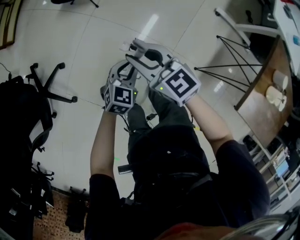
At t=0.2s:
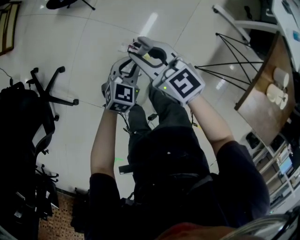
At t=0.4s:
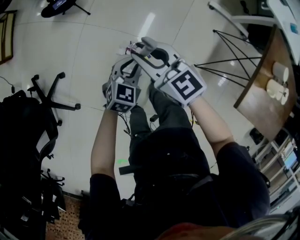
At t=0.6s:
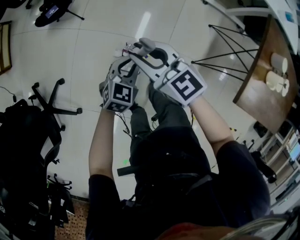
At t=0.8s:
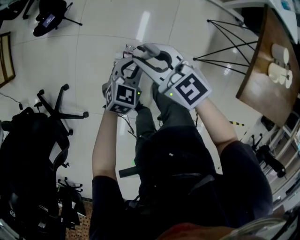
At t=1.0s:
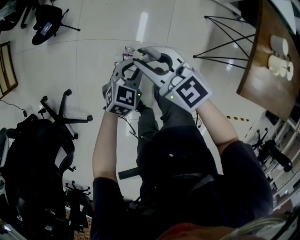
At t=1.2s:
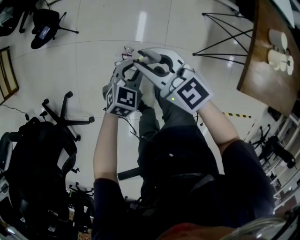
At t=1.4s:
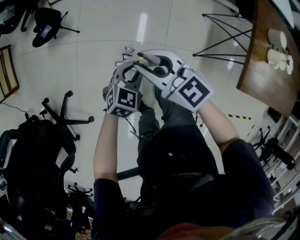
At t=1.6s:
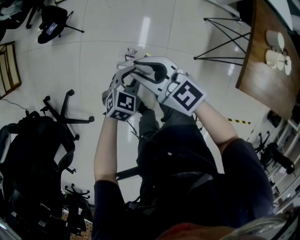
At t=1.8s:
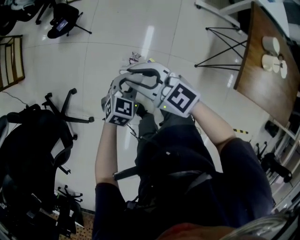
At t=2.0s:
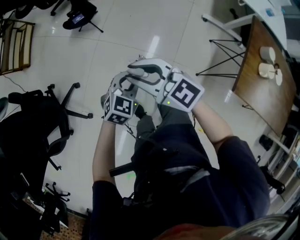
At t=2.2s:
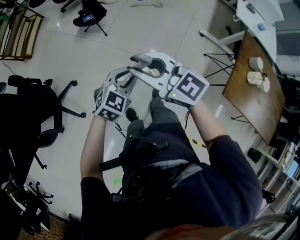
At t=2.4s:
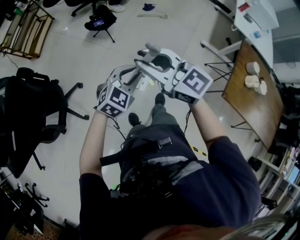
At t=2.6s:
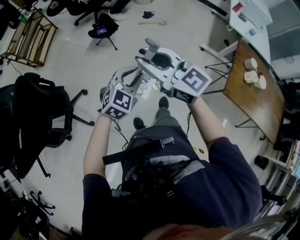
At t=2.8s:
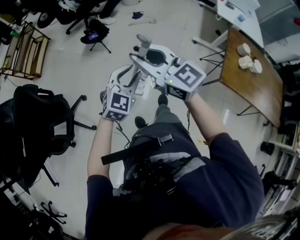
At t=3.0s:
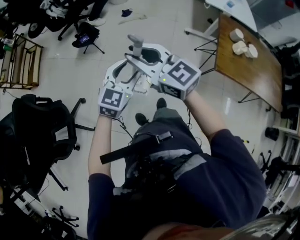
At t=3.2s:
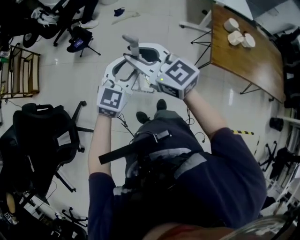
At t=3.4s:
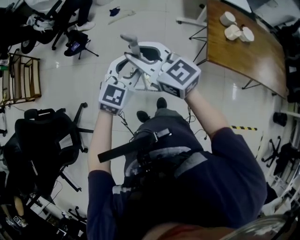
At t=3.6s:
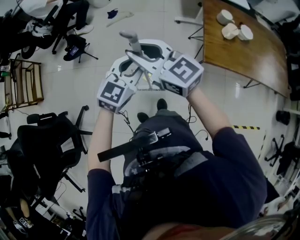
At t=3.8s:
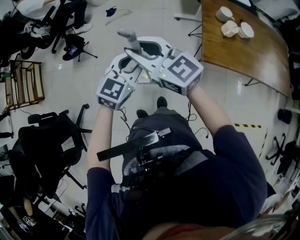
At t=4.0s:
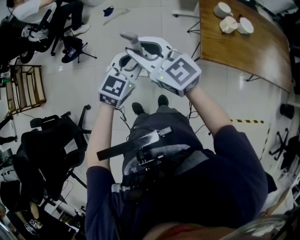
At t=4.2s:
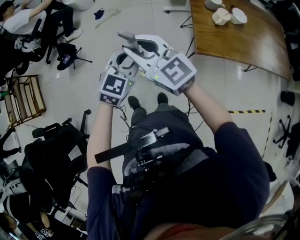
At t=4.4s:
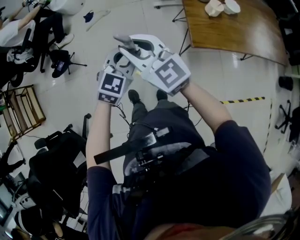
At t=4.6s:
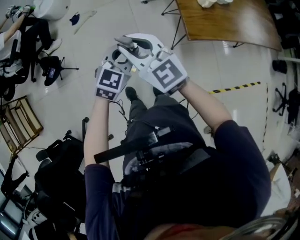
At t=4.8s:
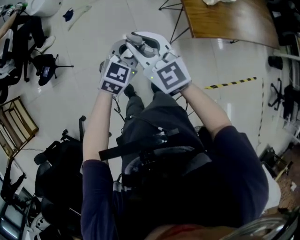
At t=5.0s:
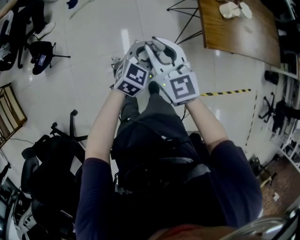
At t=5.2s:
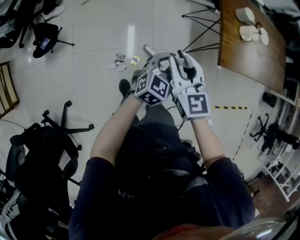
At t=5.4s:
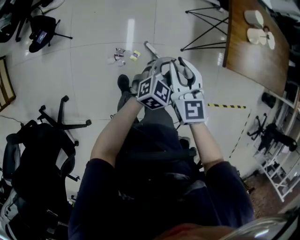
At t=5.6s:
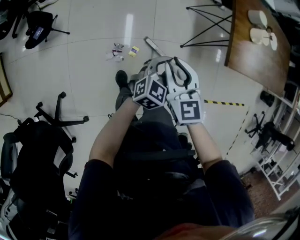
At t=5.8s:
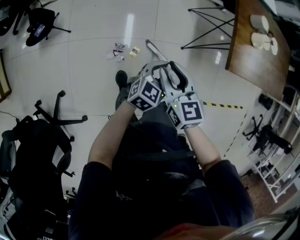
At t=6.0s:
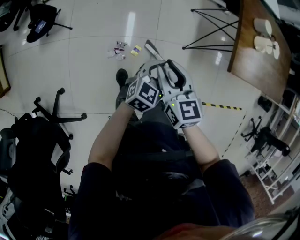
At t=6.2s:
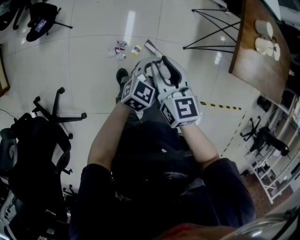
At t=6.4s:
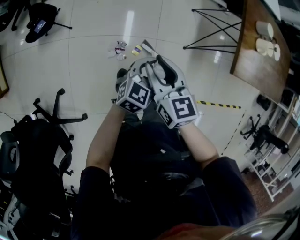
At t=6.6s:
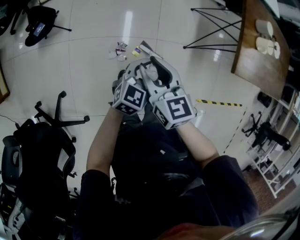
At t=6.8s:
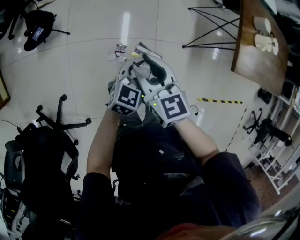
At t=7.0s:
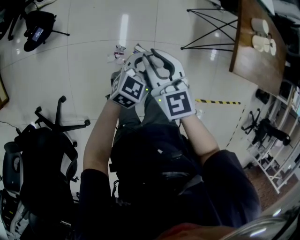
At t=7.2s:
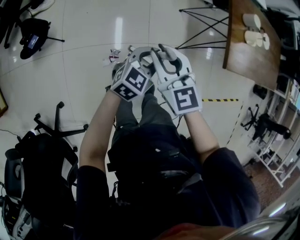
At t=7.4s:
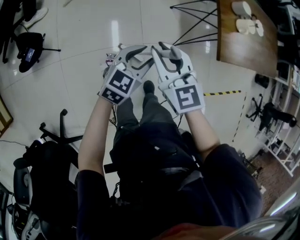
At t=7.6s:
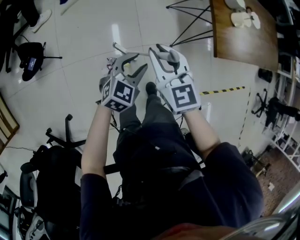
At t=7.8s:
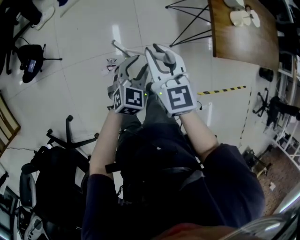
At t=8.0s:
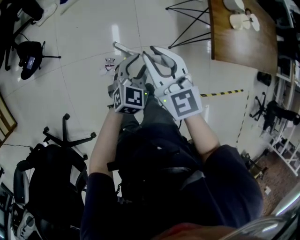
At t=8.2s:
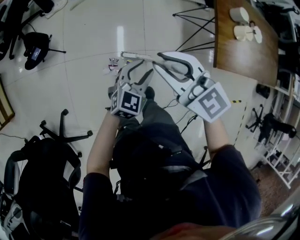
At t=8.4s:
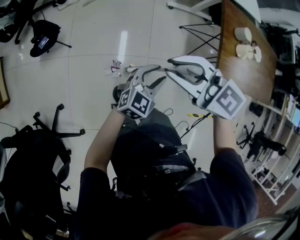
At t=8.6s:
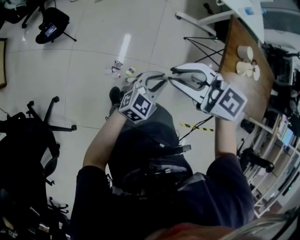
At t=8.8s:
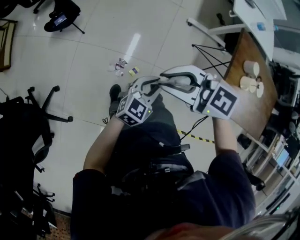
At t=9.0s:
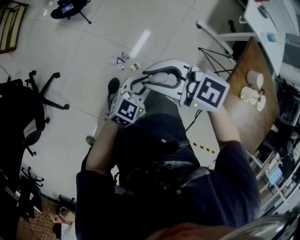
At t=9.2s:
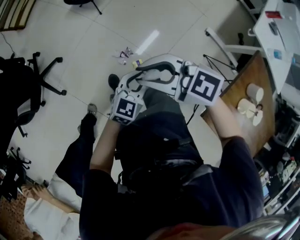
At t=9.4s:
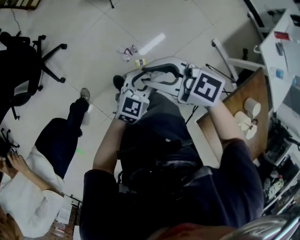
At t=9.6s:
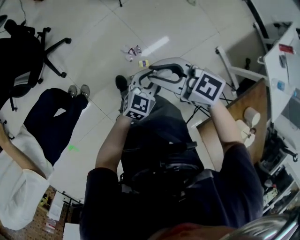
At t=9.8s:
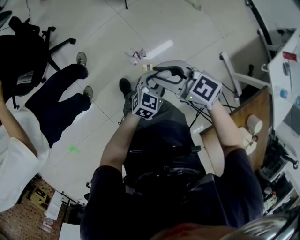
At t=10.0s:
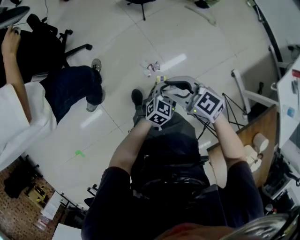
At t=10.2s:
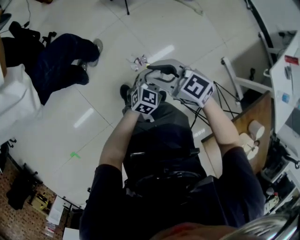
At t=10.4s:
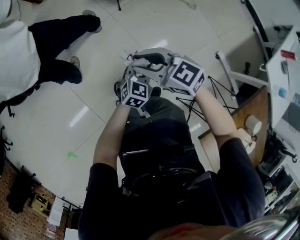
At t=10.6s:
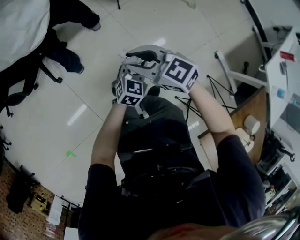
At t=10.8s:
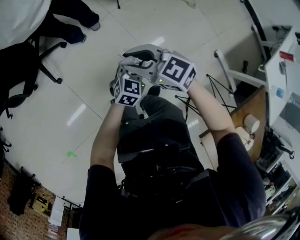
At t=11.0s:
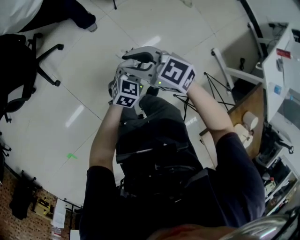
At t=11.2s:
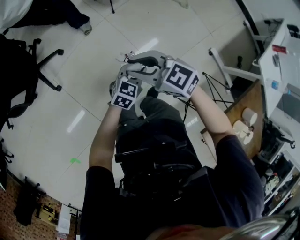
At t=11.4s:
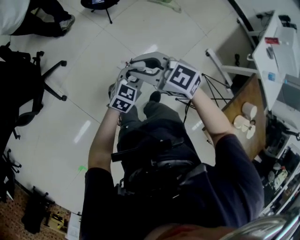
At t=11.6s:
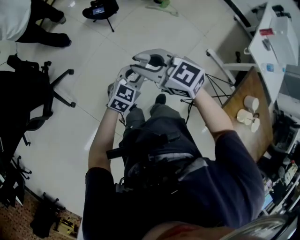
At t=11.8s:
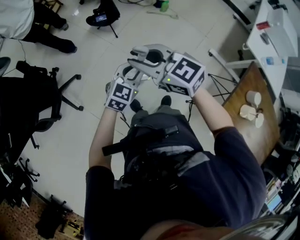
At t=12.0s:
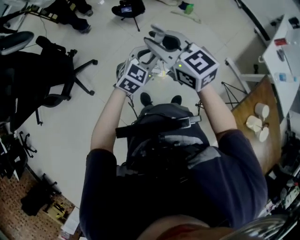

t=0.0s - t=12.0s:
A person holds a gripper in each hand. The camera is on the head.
t=0.0s - t=1.6s: The two grippers go approximately 10 cm to the right. The left gripper turns by some 20 degrees.
t=1.6s - t=3.0s: The left gripper is displaced upward by some 30 cm, changes its angle by approximately 30 degrees, and opens its fingers, while the right gripper goes about 30 cm upward and backward.
t=3.0s - t=4.4s: Both grippers travel together to the right and forward, approximately 25 cm. The left gripper rotates about 30 degrees, and closes up. The right gripper swivels roughly 30 degrees.
t=4.4s - t=6.0s: The grippers both shift downward by about 25 cm. The left gripper swivels about 20 degrees. The right gripper swivels roughly 40 degrees.
t=6.0s - t=7.6s: The left gripper is displaced to the left by approximately 5 cm, while the right gripper goes some 10 cm forward and upward, and reaches some 10 cm to the left, then returns.
t=7.6s - t=9.0s: The right gripper shifts by some 10 cm, and swivels roughly 90 degrees. Meanwhile the left gripper swivels some 40 degrees, and closes up.
t=9.0s - t=10.4s: Both grippers move downward, some 10 cm. The left gripper swivels roughly 40 degrees.
t=10.4s - t=12.0s: Both grippers move upward, about 25 cm. The right gripper swivels some 30 degrees.

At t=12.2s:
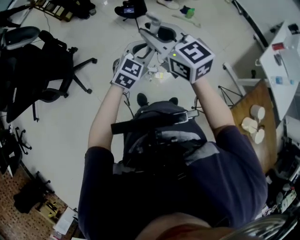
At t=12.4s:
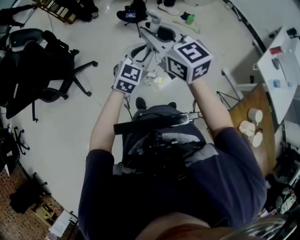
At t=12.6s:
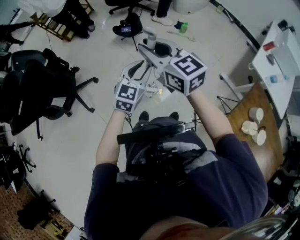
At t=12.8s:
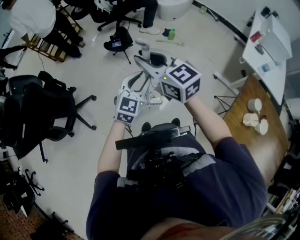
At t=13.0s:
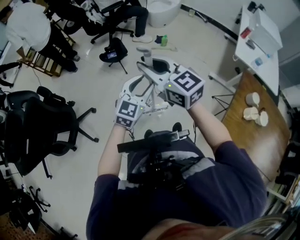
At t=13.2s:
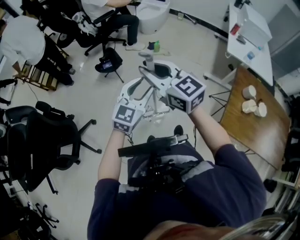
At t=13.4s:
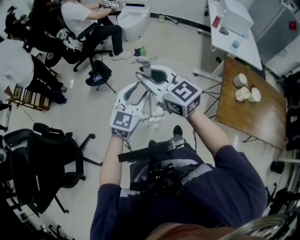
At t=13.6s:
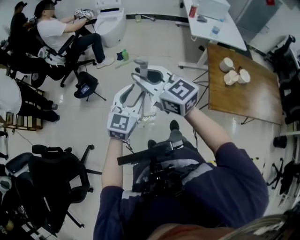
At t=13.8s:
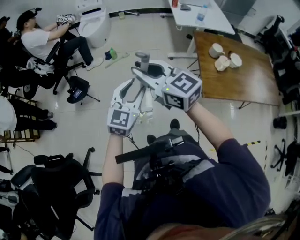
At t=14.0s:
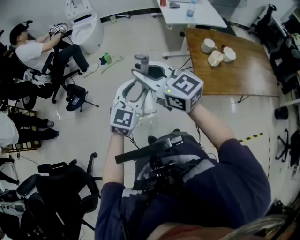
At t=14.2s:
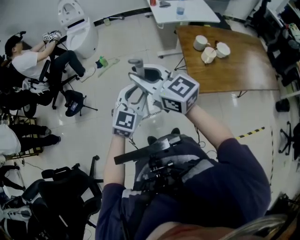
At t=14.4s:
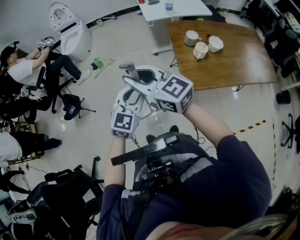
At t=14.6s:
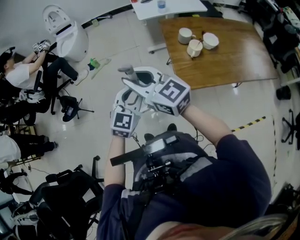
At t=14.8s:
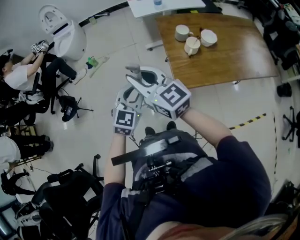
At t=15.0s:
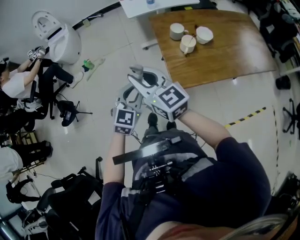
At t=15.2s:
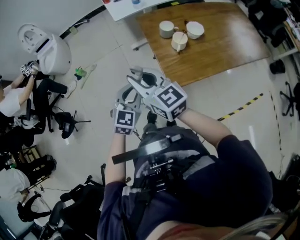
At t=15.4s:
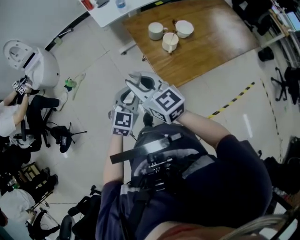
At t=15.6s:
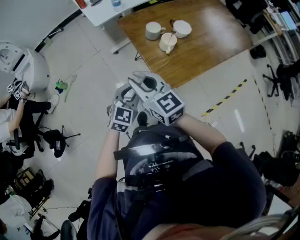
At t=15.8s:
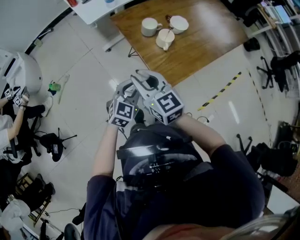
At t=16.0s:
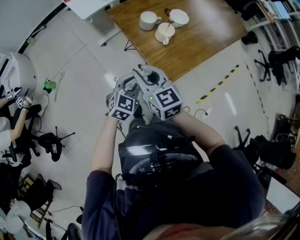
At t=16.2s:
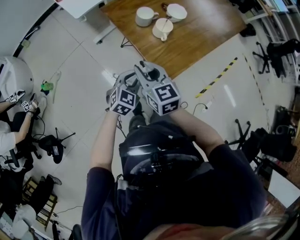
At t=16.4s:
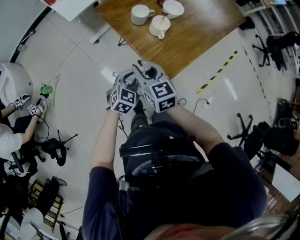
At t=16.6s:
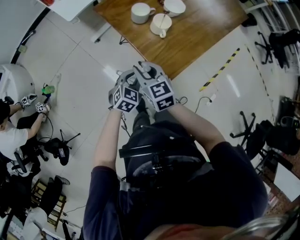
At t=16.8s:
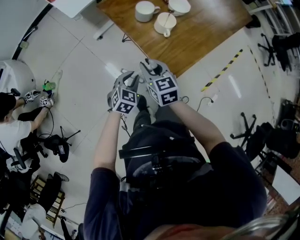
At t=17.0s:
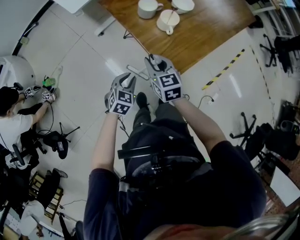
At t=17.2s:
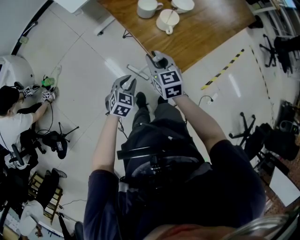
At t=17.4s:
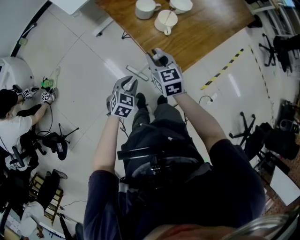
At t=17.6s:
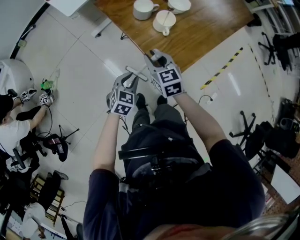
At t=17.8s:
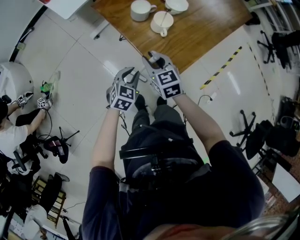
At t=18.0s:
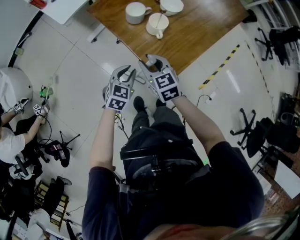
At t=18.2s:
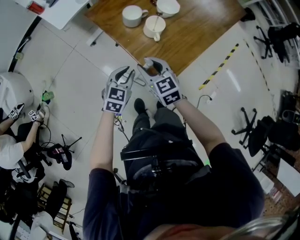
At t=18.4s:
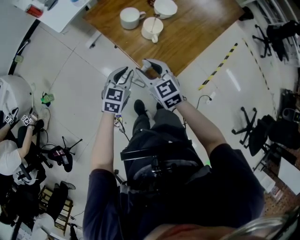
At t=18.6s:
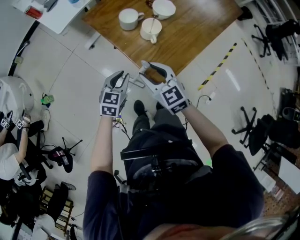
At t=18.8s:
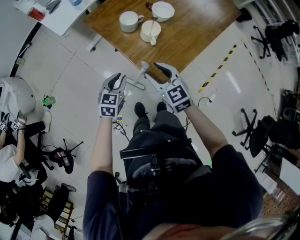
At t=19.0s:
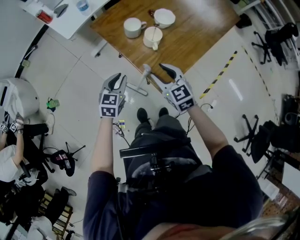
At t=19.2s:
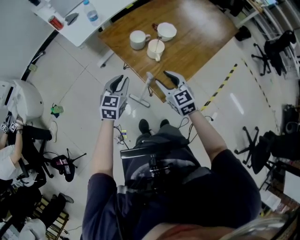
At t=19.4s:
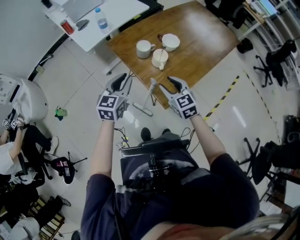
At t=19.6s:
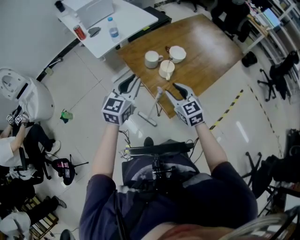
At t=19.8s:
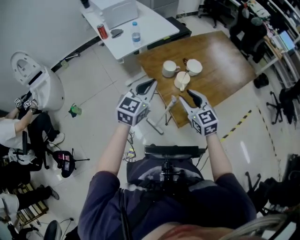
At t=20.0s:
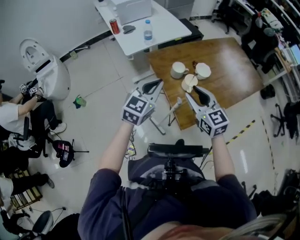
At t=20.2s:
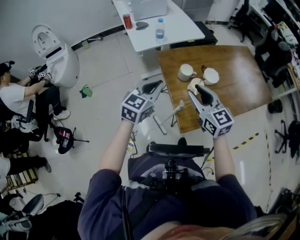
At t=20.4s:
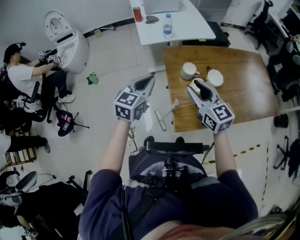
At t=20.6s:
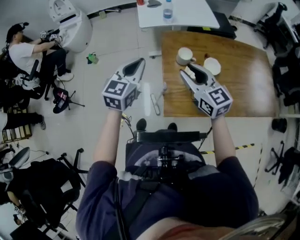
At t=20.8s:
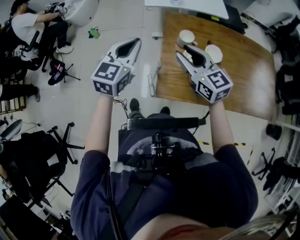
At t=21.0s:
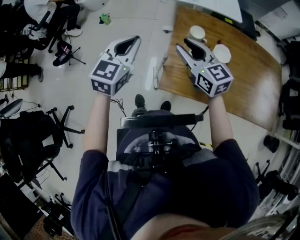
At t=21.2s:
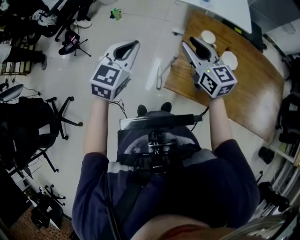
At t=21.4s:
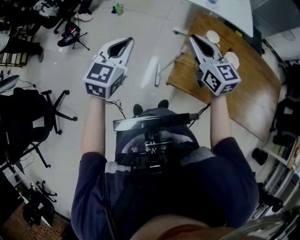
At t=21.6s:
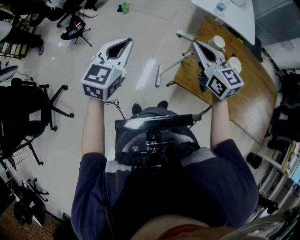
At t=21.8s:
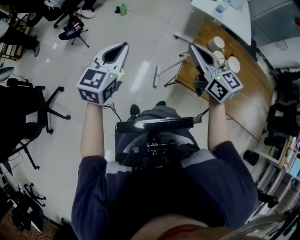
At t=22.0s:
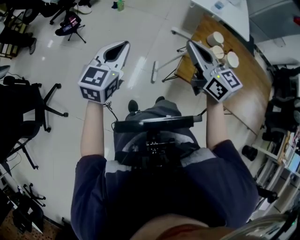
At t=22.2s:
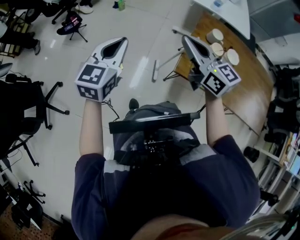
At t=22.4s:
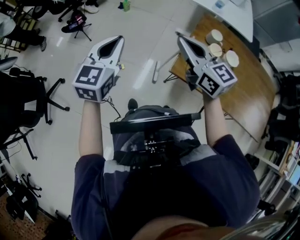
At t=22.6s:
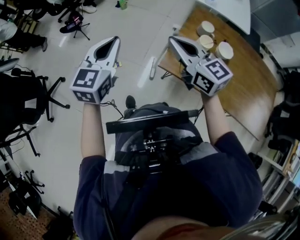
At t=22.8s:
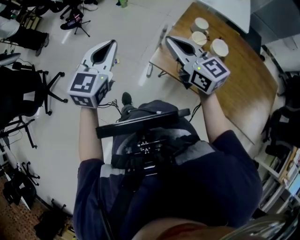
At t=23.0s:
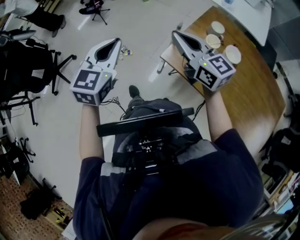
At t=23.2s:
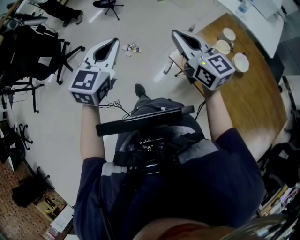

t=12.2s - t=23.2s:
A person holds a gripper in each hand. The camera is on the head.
t=12.2s - t=13.8s: The left gripper moves roughly 20 cm, swivels about 40 degrees, and opens; the right gripper moves about 15 cm, and turns by about 40 degrees.
t=13.8s - t=15.4s: The right gripper changes place by some 30 cm, and swivels roughly 40 degrees; the left gripper shifts by approximately 30 cm, rotates roughly 30 degrees, and closes.
t=15.4s - t=17.0s: The two grippers go about 20 cm downward. The right gripper turns by roughly 40 degrees. The left gripper turns by approximately 30 degrees.
t=17.0s - t=18.4s: The right gripper opens its fingers. Meanwhile the left gripper is displaced forward and upward by approximately 10 cm.
t=18.4s - t=20.0s: Both grippers travel together upward, about 25 cm. The left gripper swivels approximately 20 degrees.
t=20.0s - t=21.6s: The right gripper ends up approximately 10 cm from where it was, changes its angle by some 50 degrees, and closes up; the left gripper changes place by roughly 30 cm, and changes its angle by some 60 degrees.
t=21.6s - t=23.2s: The left gripper moves approximately 20 cm, and turns by about 30 degrees. Meanwhile the right gripper moves roughly 10 cm, and rotates some 30 degrees.
